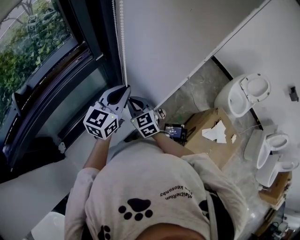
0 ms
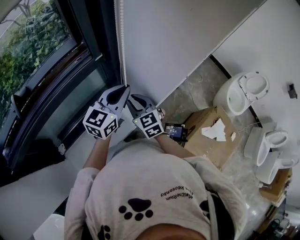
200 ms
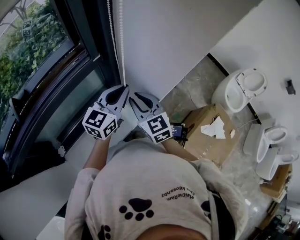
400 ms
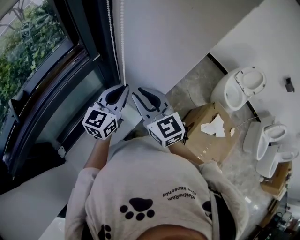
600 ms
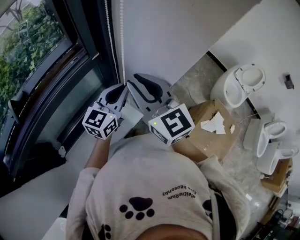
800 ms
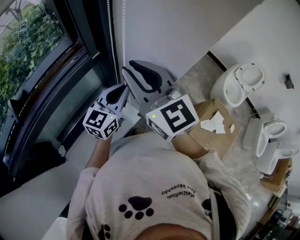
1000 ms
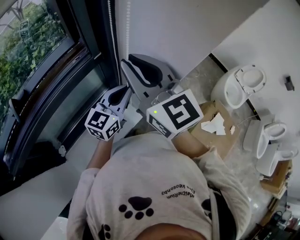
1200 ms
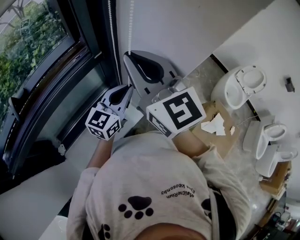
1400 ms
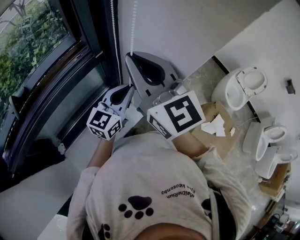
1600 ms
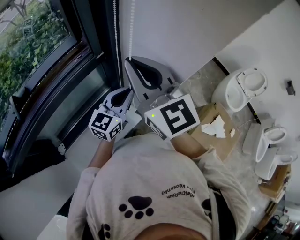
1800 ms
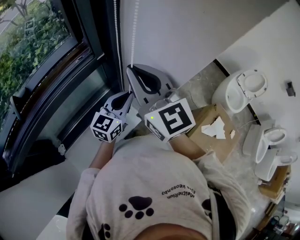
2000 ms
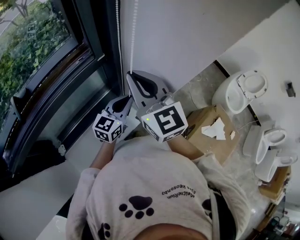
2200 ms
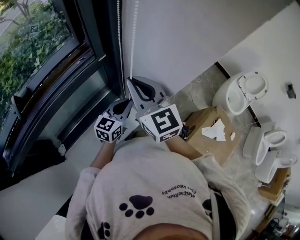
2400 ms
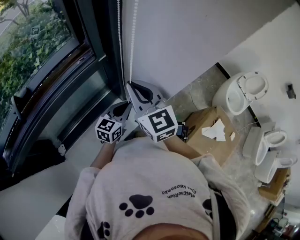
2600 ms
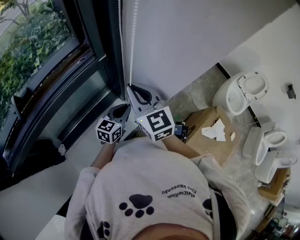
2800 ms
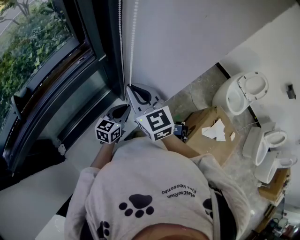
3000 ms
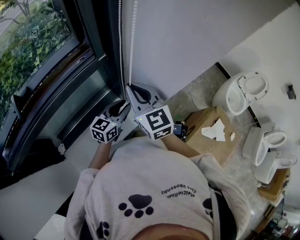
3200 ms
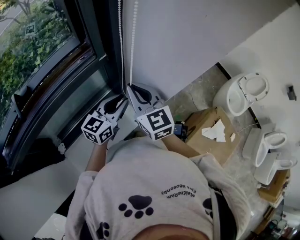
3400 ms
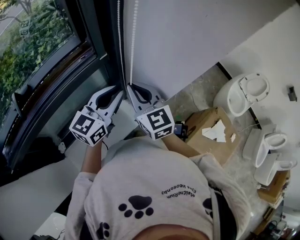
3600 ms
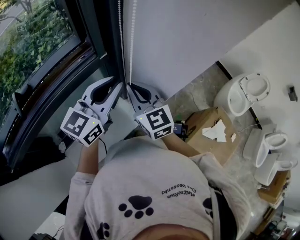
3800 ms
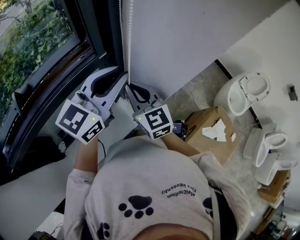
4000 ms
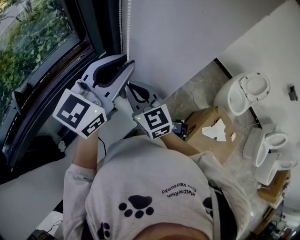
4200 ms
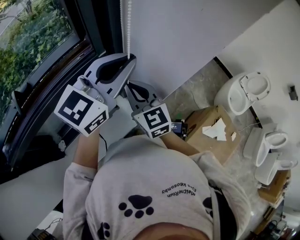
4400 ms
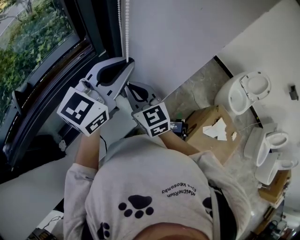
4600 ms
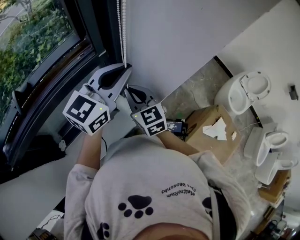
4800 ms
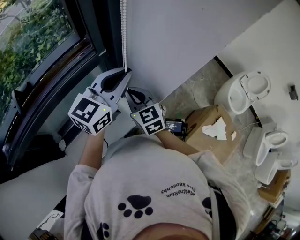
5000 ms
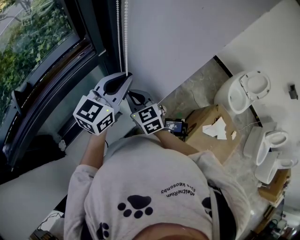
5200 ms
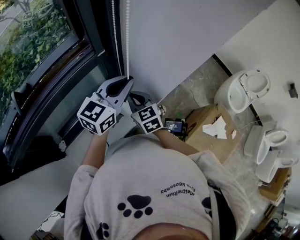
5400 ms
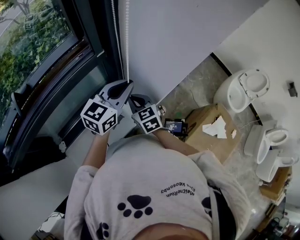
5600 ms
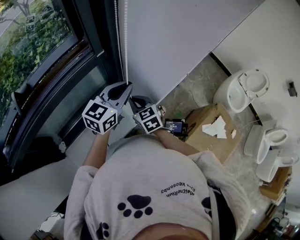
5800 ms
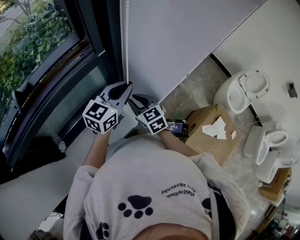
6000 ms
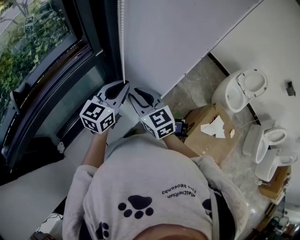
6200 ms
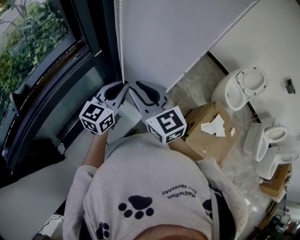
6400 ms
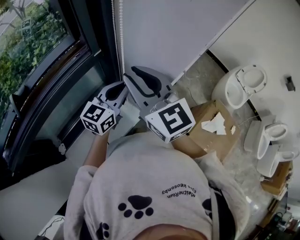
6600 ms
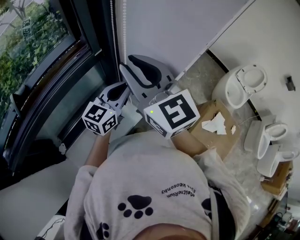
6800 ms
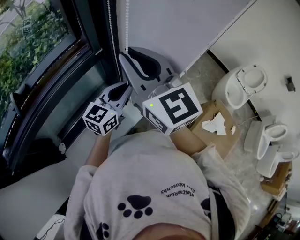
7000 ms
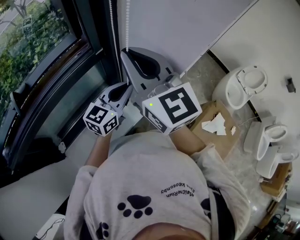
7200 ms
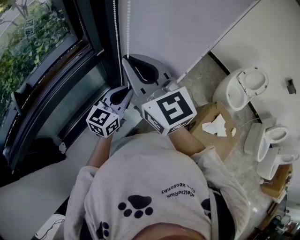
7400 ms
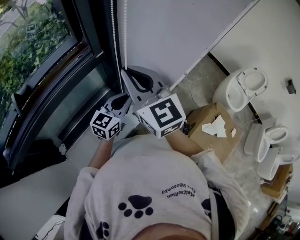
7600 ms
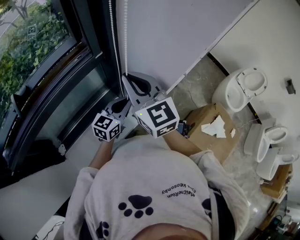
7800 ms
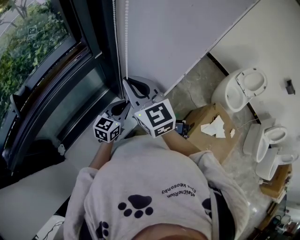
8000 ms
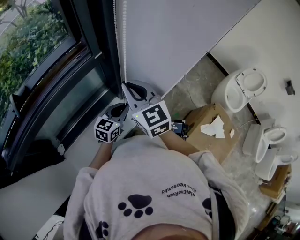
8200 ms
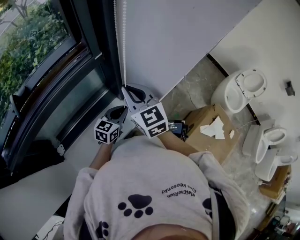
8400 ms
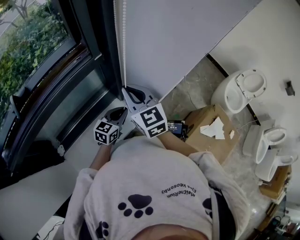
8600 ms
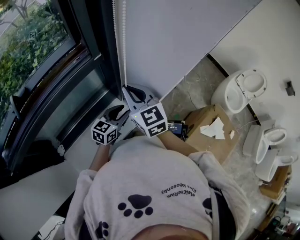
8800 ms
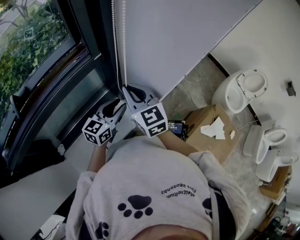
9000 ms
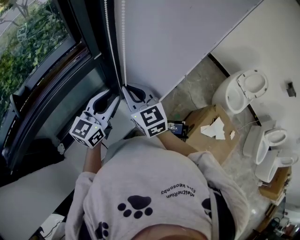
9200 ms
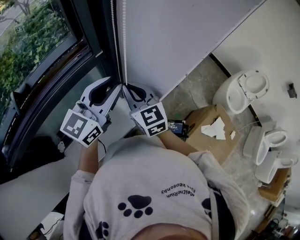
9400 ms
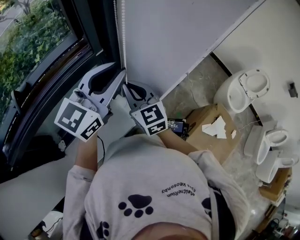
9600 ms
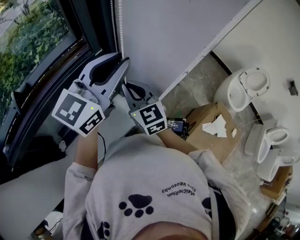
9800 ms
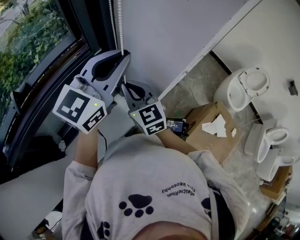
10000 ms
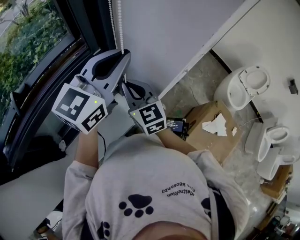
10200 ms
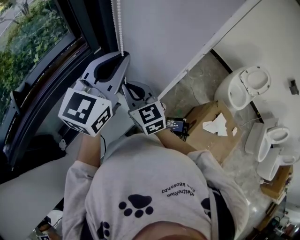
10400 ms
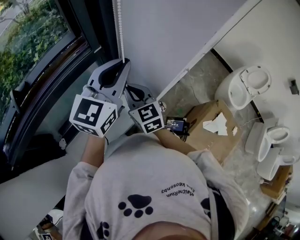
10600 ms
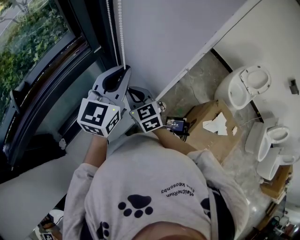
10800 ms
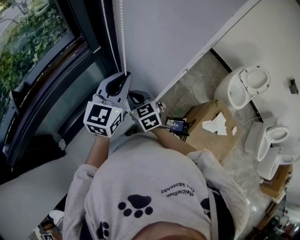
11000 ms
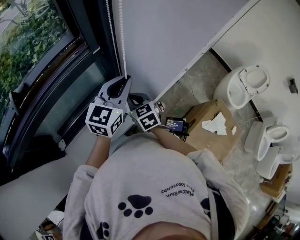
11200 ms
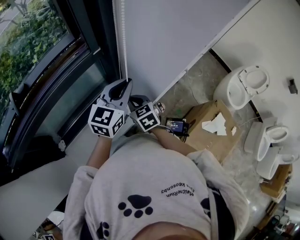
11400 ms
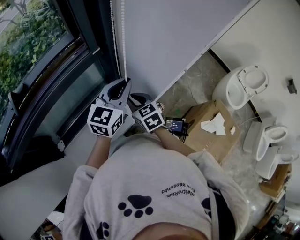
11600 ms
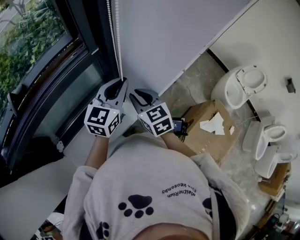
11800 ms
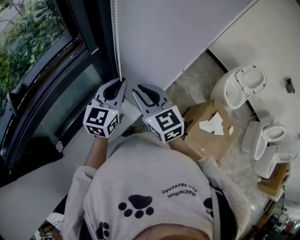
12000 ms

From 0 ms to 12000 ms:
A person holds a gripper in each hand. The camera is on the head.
From 0 ms to 1600 ms: The right gripper is displaced upward by approximately 35 cm, and changes its angle by roughly 30 degrees.
From 1600 ms to 3000 ms: Both grippers move downward, approximately 15 cm.
From 3000 ms to 4400 ms: The left gripper heads upward, covering approximately 35 cm, and changes its angle by some 30 degrees.
From 4400 ms to 6000 ms: The grippers both shift downward by approximately 15 cm. The right gripper swivels roughly 20 degrees.
From 6000 ms to 7600 ms: The left gripper moves downward, some 5 cm. The right gripper heads upward, covering roughly 25 cm, and turns by roughly 30 degrees.
From 7600 ms to 9000 ms: The left gripper goes downward and returns, about 10 cm each way, and opens up; the right gripper moves downward, about 10 cm.
From 9000 ms to 10400 ms: The left gripper shifts approximately 25 cm upward, turns by about 20 degrees, and closes up.
From 10400 ms to 12000 ms: The left gripper is displaced downward by about 15 cm. The right gripper travels downward and back again, approximately 15 cm each way.

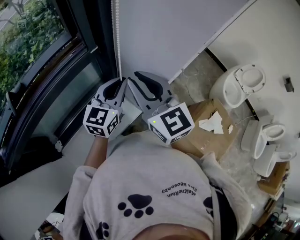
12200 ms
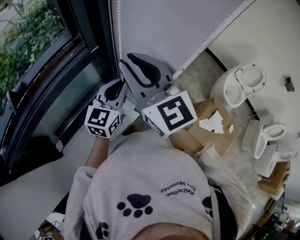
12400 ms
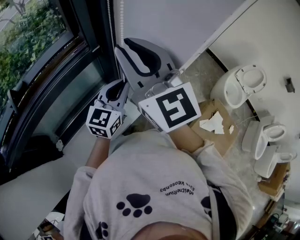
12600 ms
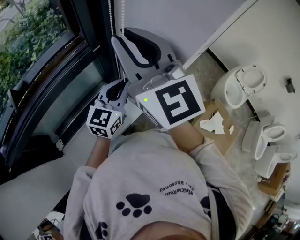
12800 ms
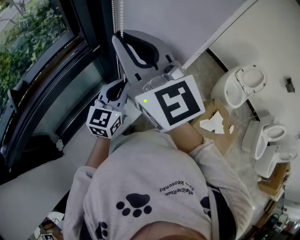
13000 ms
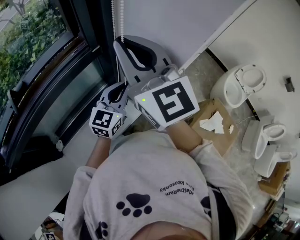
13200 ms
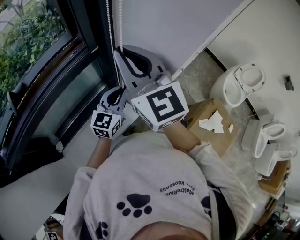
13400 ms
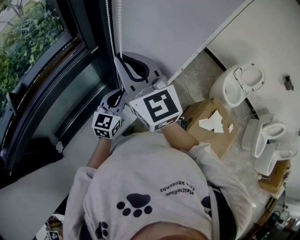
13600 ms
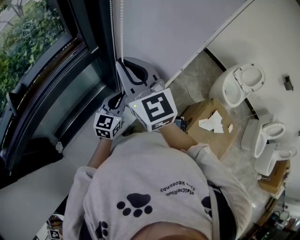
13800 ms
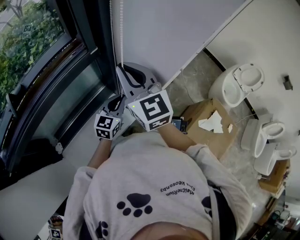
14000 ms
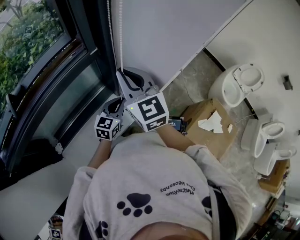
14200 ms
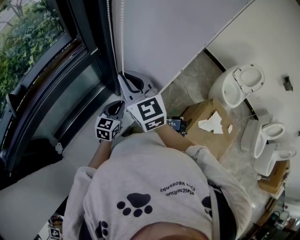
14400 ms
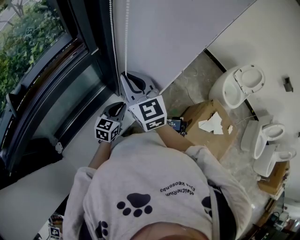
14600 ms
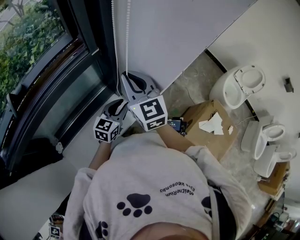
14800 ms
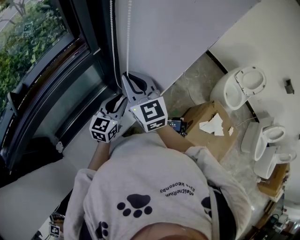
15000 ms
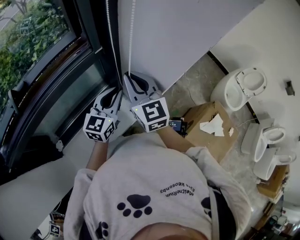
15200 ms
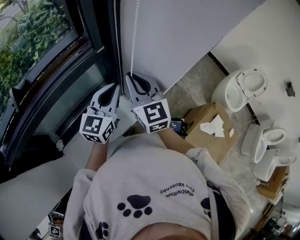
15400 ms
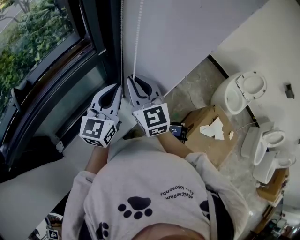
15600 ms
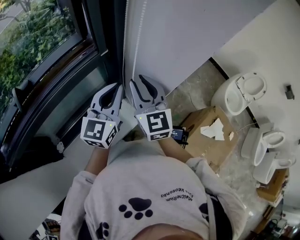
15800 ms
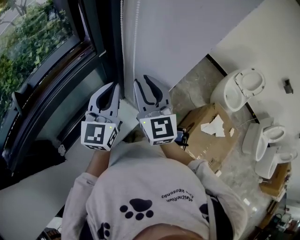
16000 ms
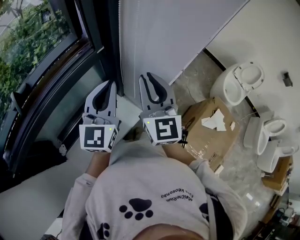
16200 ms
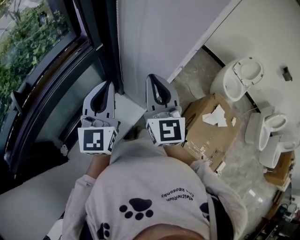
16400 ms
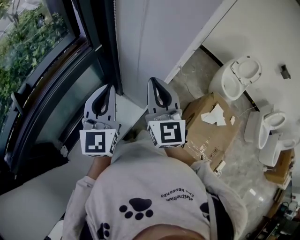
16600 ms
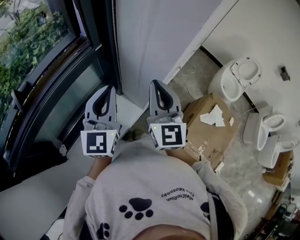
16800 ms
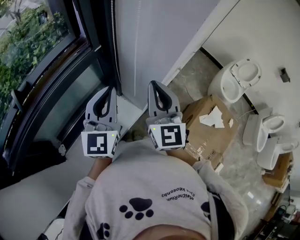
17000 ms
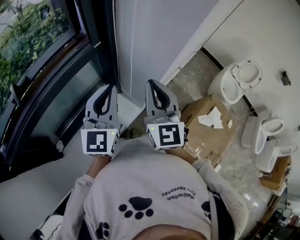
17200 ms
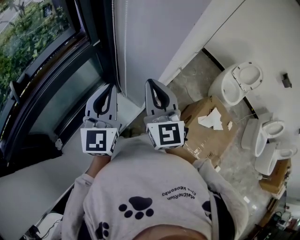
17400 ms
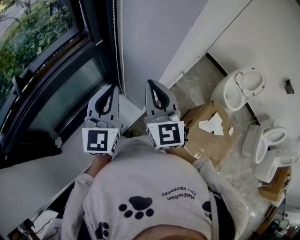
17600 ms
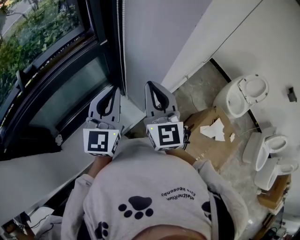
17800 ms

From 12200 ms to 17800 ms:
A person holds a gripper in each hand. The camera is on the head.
From 12200 ms to 13600 ms: The left gripper goes approximately 10 cm downward, while the right gripper goes upward and returns, about 15 cm each way.
From 13600 ms to 15000 ms: The left gripper travels downward and back again, roughly 10 cm each way. Meanwhile the right gripper moves downward, about 10 cm.
From 15000 ms to 16400 ms: The left gripper shifts roughly 20 cm upward, turns by some 20 degrees, and closes its fingers. Meanwhile the right gripper travels backward, to the right and upward by about 10 cm, and changes its angle by some 20 degrees.
From 16400 ms to 17800 ms: The left gripper changes place by about 5 cm.

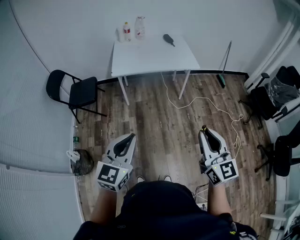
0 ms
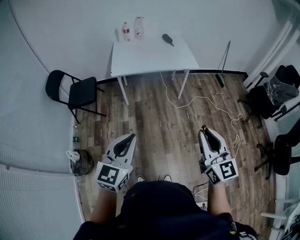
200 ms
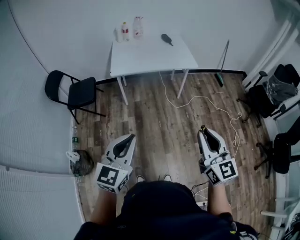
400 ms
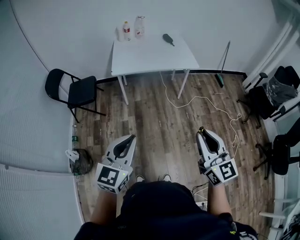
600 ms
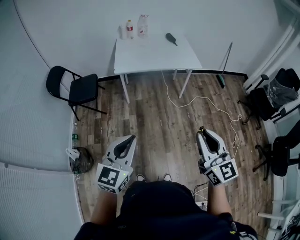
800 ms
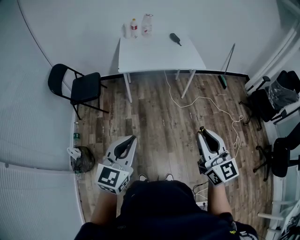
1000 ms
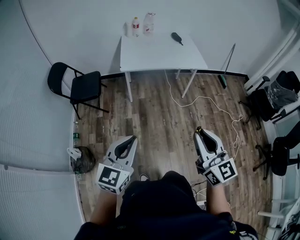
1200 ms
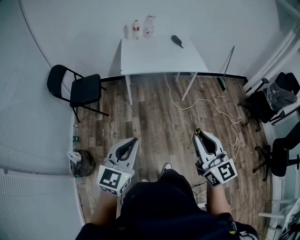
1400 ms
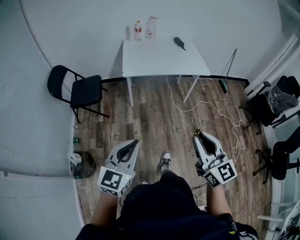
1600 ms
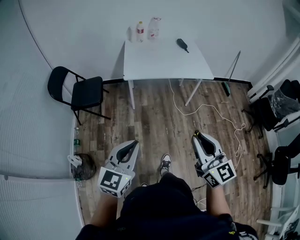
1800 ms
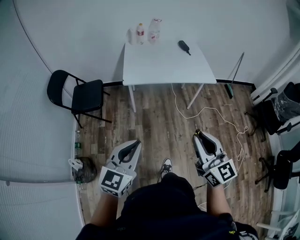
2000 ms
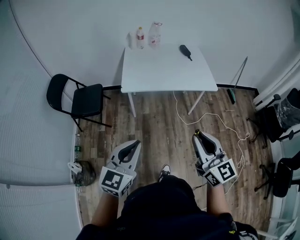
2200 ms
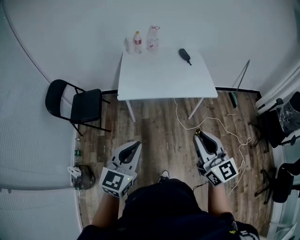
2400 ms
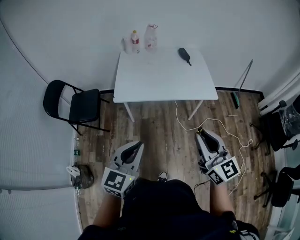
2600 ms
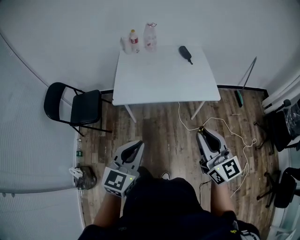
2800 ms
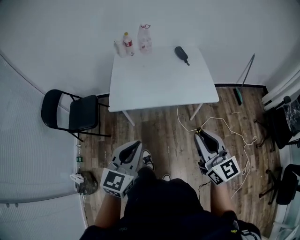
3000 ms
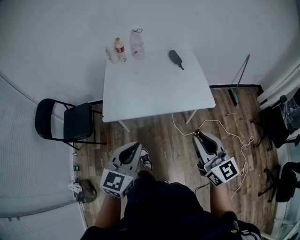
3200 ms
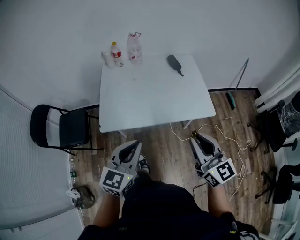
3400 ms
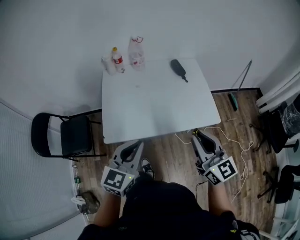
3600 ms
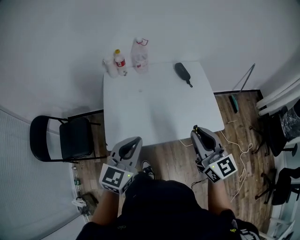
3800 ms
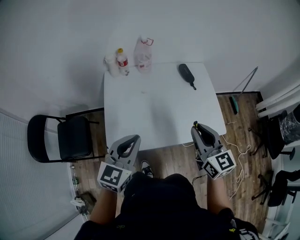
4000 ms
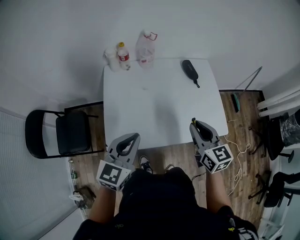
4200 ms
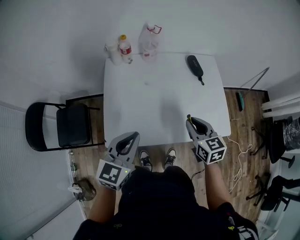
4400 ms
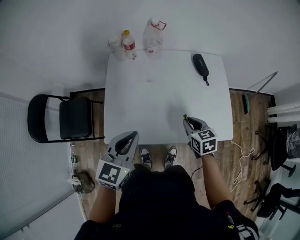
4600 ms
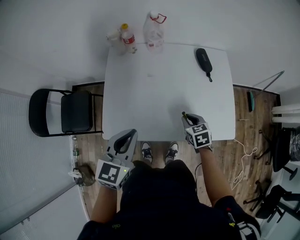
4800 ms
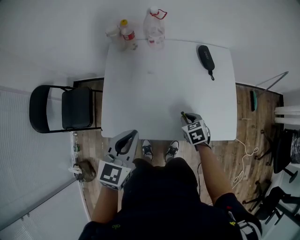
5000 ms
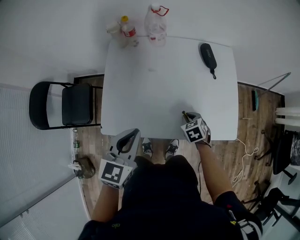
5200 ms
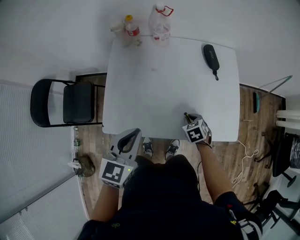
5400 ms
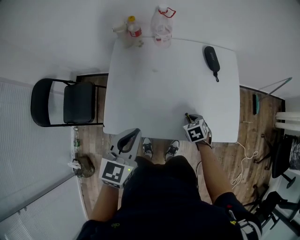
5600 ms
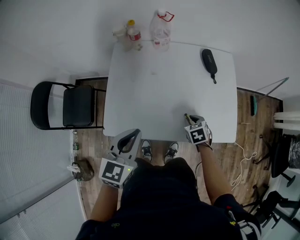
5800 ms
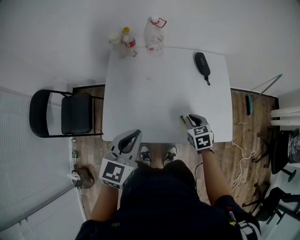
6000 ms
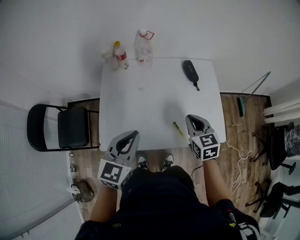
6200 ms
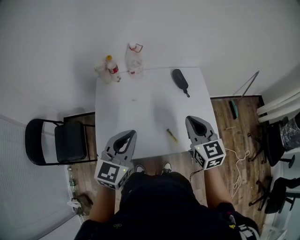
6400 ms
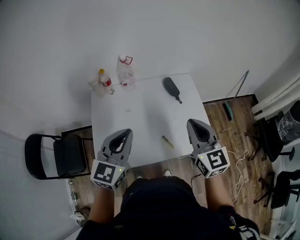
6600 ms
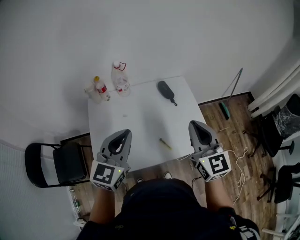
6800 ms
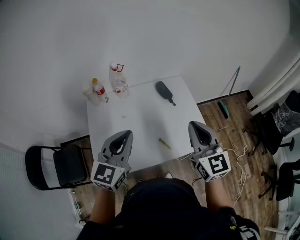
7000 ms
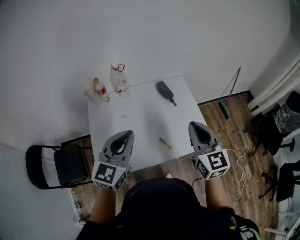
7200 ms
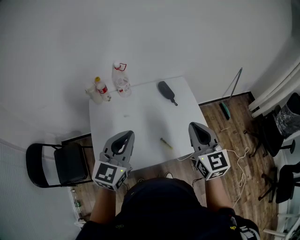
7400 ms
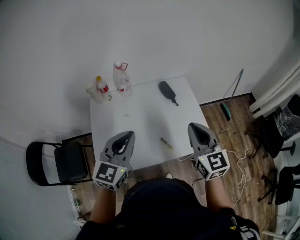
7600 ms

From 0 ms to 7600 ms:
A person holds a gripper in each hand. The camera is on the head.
From 0 ms to 1600 ms: Both grippers move to the left, about 15 cm.
From 1600 ms to 3000 ms: The grippers both shift forward and to the right by about 40 cm.
From 3000 ms to 4600 ms: The right gripper goes about 50 cm forward and downward, and angles its fingers downward, by some 40 degrees; the left gripper goes about 40 cm forward.
From 4600 ms to 6000 ms: The right gripper reaches about 15 cm downward, then returns.
From 6000 ms to 7600 ms: The right gripper shifts some 30 cm upward, and tips its fingers upward by approximately 40 degrees; the left gripper moves upward, about 10 cm, and turns by some 20 degrees.
